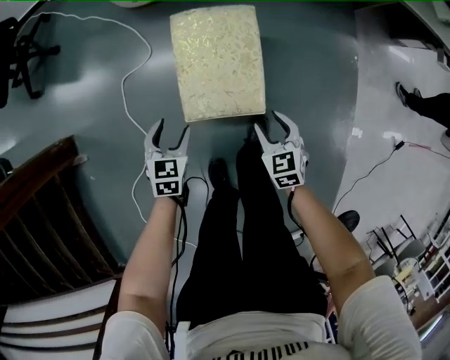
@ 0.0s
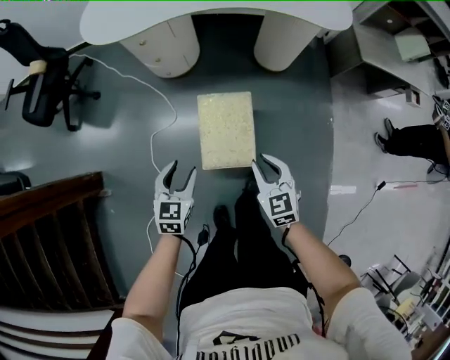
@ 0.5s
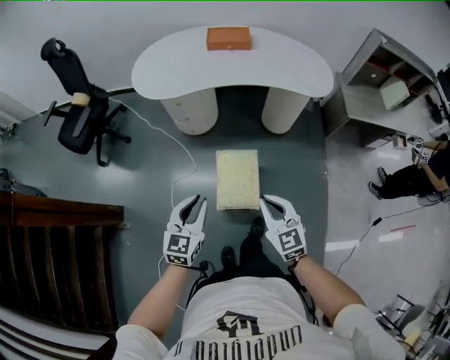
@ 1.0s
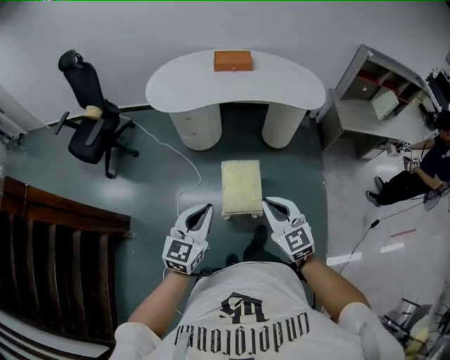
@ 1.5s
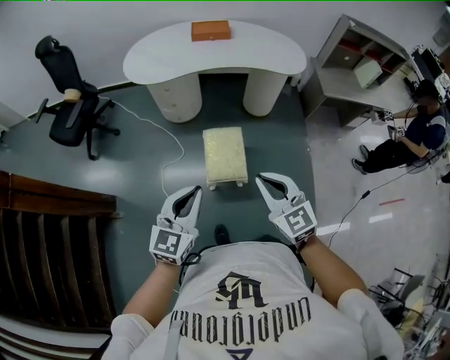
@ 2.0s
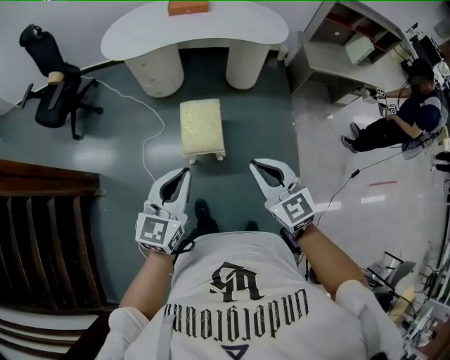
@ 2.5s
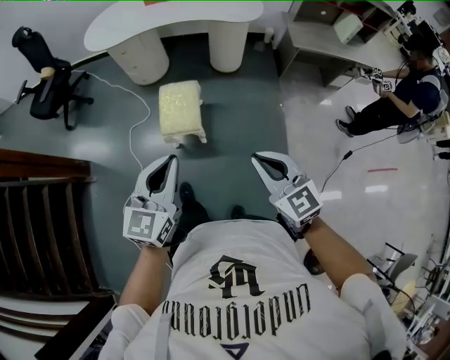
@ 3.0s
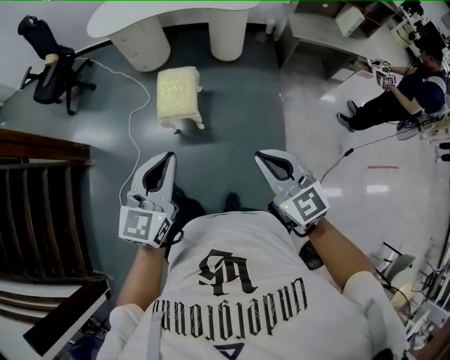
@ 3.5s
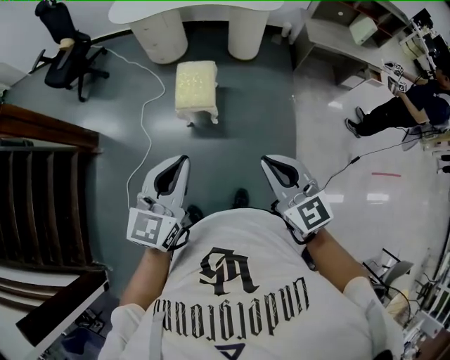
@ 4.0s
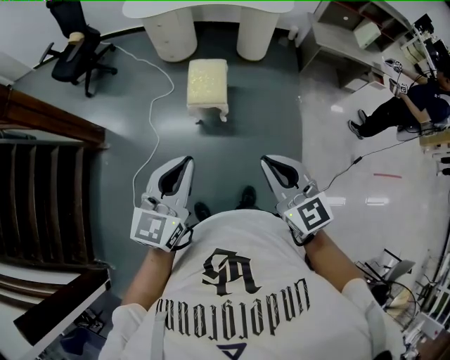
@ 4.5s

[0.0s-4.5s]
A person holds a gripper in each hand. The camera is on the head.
0.0s to 2.0s: Both grippers travel together upward, about 70 cm. The left gripper points its fingers about 40 degrees further upward, and closes up, while the right gripper tilts its fingers approximately 30 degrees upward, and closes up.
2.0s to 4.5s: Both grippers move backward, roughly 35 cm.

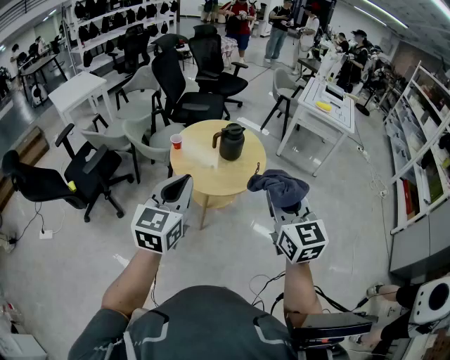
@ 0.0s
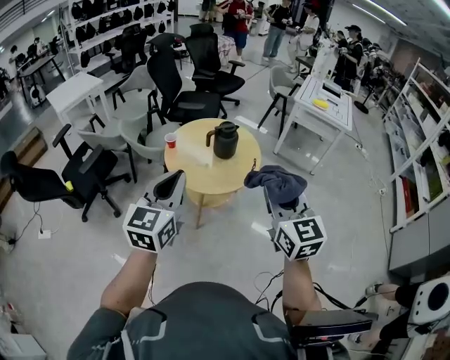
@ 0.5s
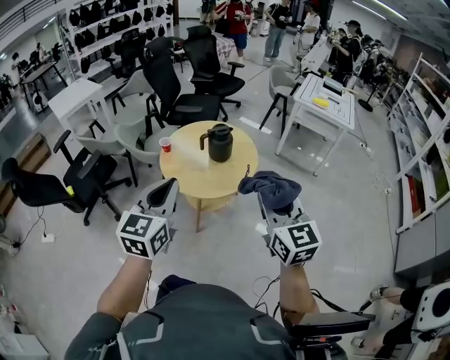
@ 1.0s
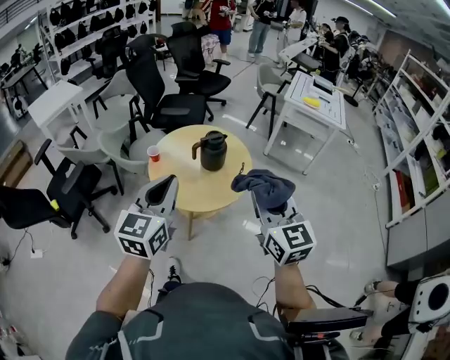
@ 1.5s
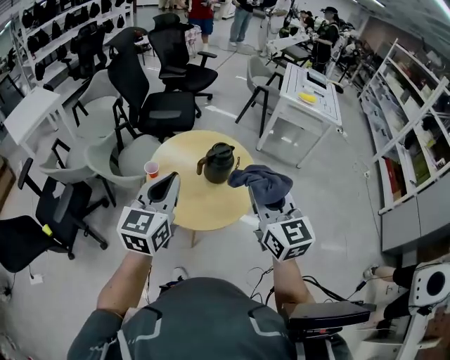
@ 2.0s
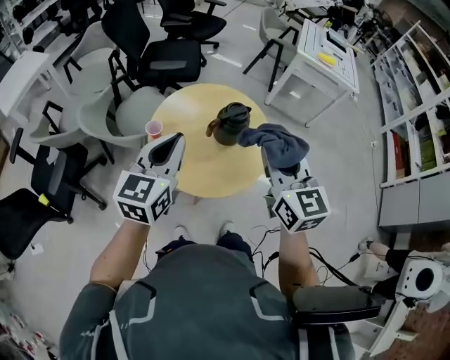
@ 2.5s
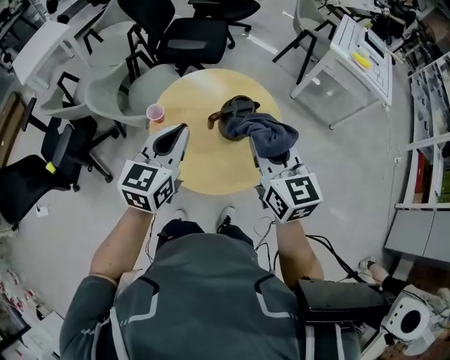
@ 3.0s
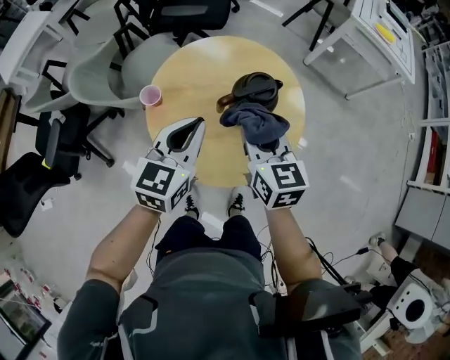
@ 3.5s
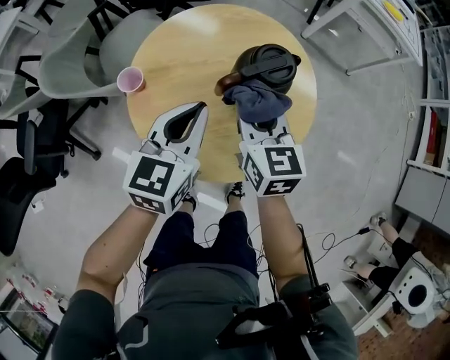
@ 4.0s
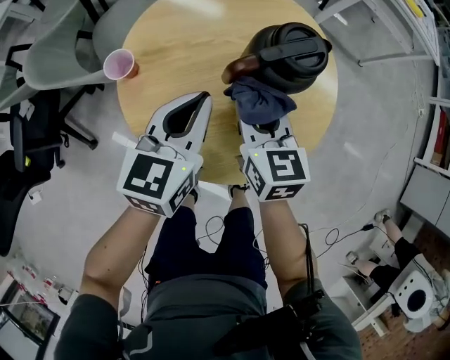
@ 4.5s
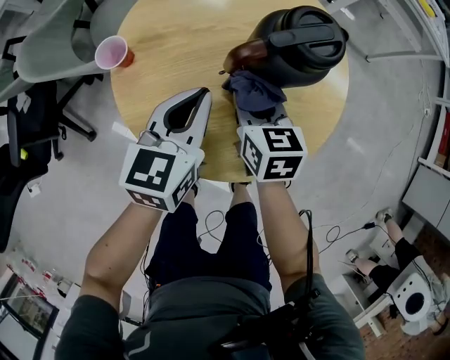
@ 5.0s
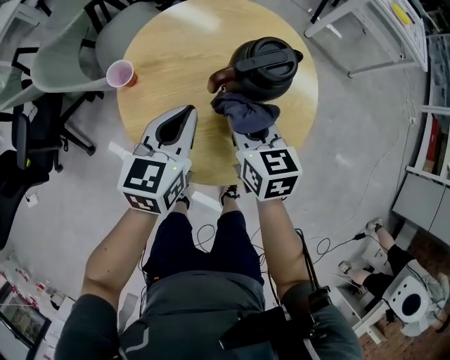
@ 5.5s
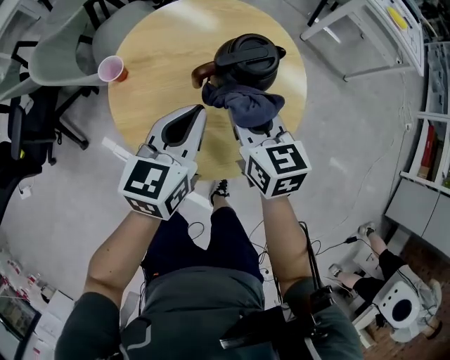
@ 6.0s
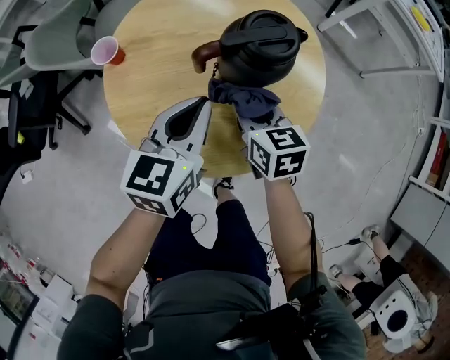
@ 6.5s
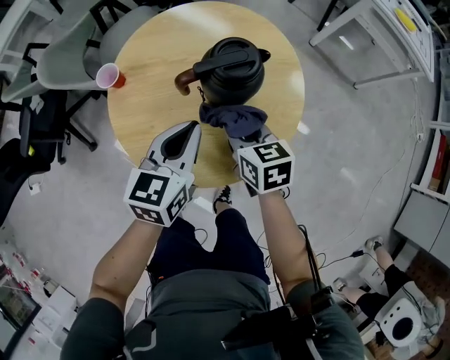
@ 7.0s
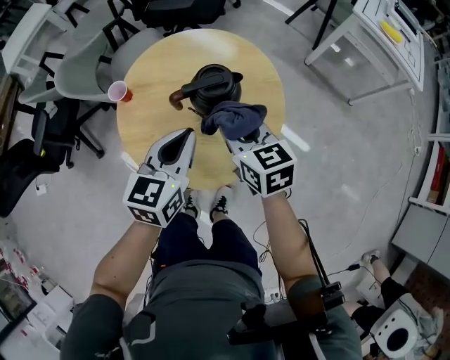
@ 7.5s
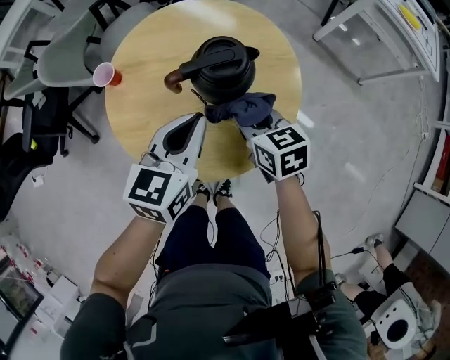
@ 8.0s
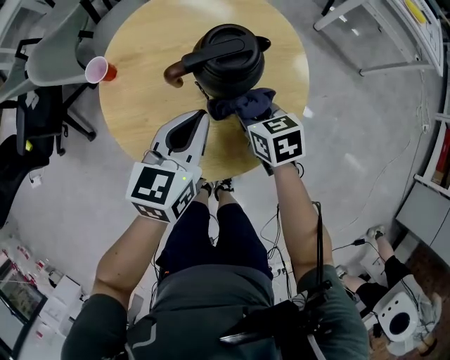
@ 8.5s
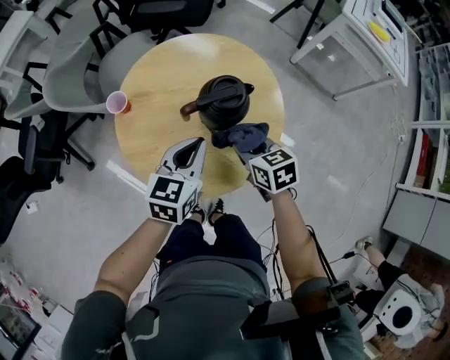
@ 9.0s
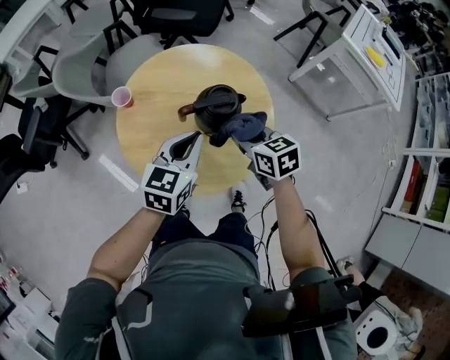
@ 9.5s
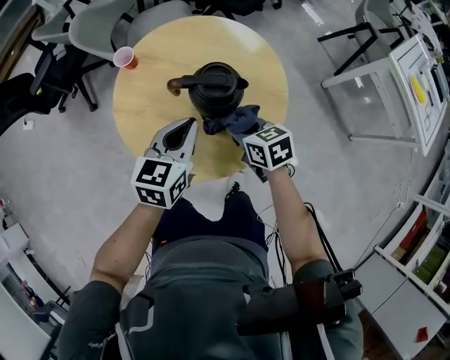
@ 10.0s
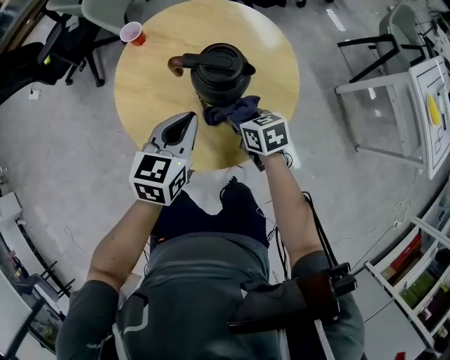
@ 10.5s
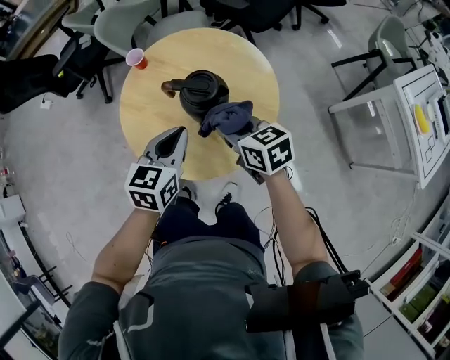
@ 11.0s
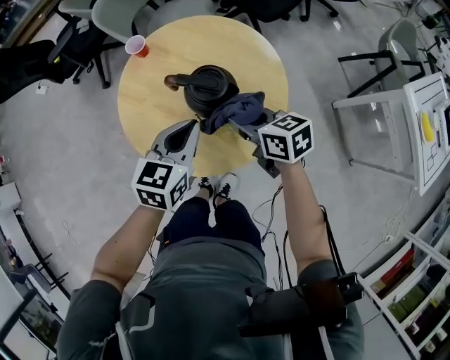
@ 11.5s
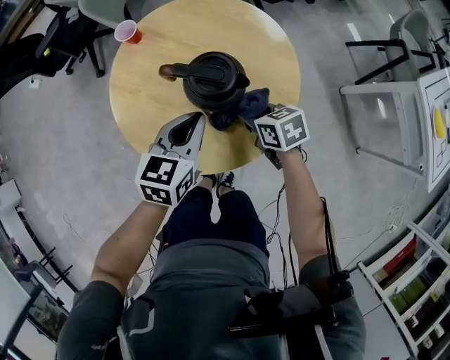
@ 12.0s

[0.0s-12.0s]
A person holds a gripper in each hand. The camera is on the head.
0.0s to 2.0s: The grippers both shift forward by roughly 25 cm.
2.0s to 4.0s: Both grippers travel together downward and forward, roughly 35 cm. The right gripper rotates about 20 degrees.
4.0s to 6.0s: The right gripper travels downward and back again, some 15 cm each way; the left gripper goes some 5 cm to the right, and moves about 10 cm downward and comes back.
6.0s to 8.0s: The right gripper goes up and down, about 15 cm each way, reversing 2 times. Meanwhile the left gripper goes up and down, about 10 cm each way, reversing 2 times.
8.0s to 10.0s: The right gripper swings up and down, about 15 cm each way, with 2 reversals, and rotates some 30 degrees; the left gripper reaches some 5 cm upward, then returns.
10.0s to 12.0s: The right gripper moves up and down over approximately 15 cm, changing direction 2 times.

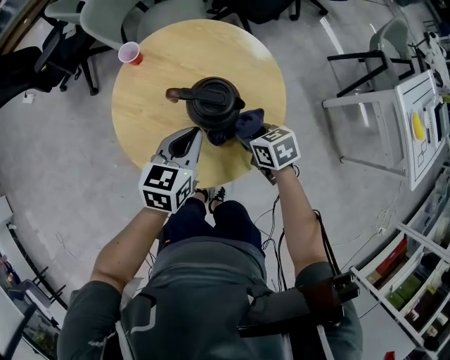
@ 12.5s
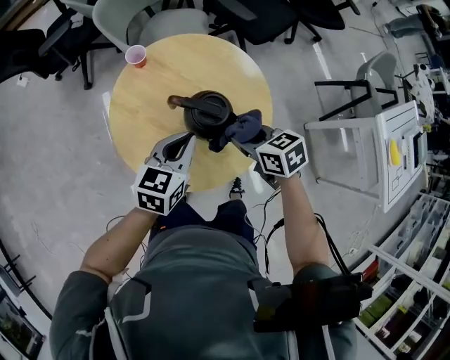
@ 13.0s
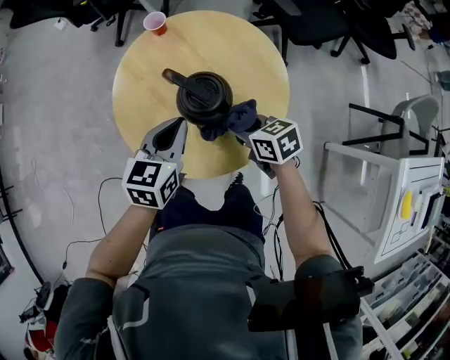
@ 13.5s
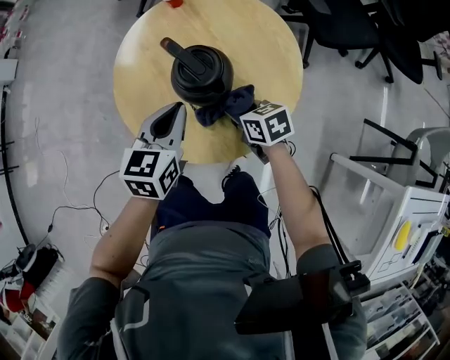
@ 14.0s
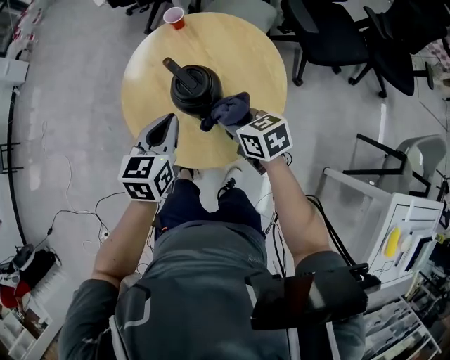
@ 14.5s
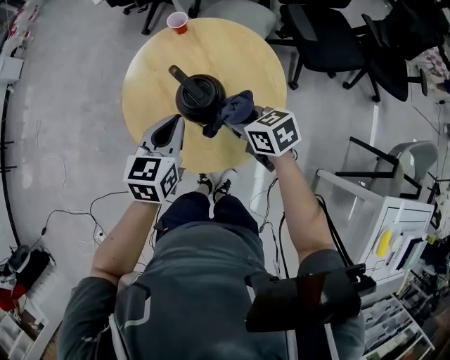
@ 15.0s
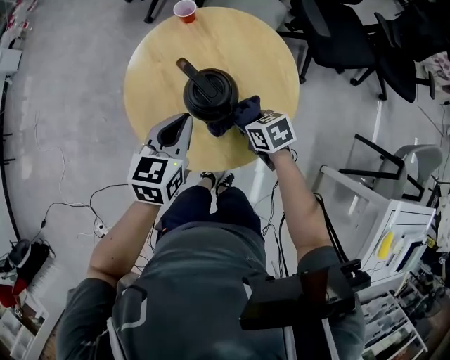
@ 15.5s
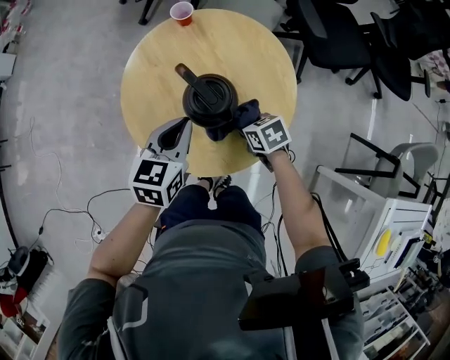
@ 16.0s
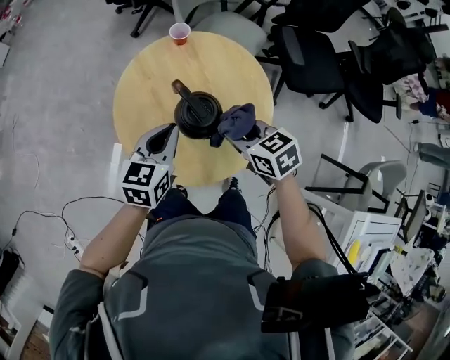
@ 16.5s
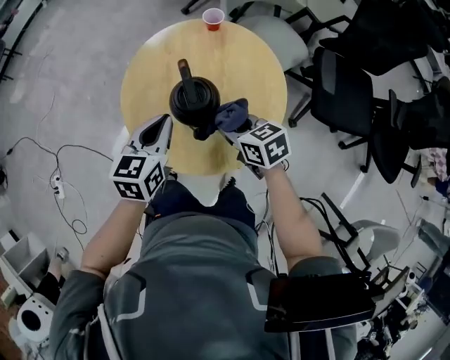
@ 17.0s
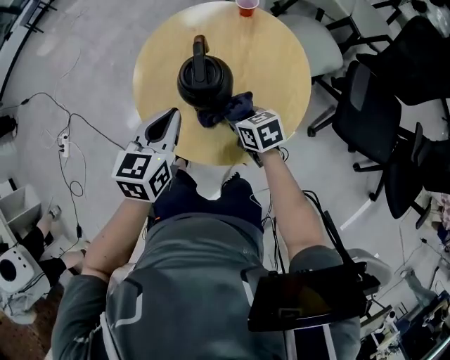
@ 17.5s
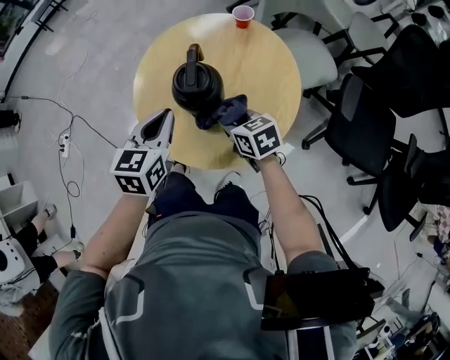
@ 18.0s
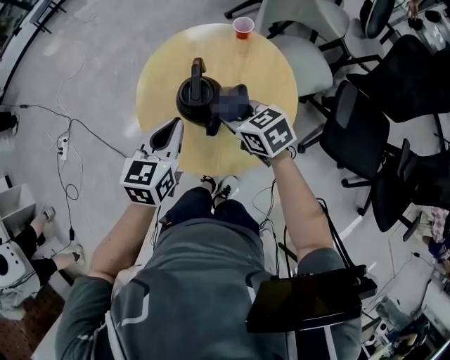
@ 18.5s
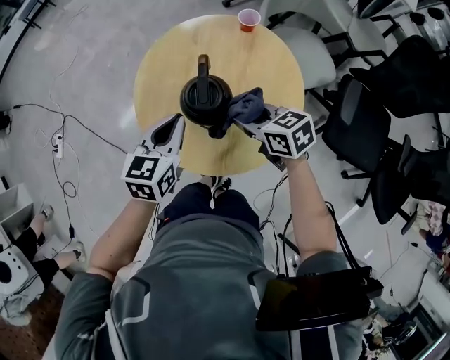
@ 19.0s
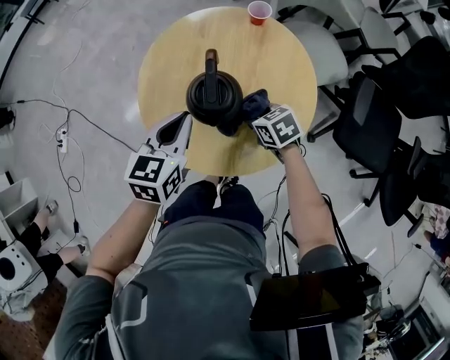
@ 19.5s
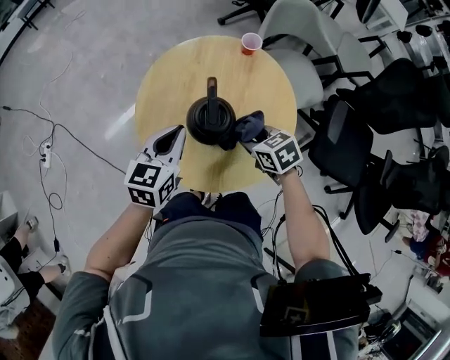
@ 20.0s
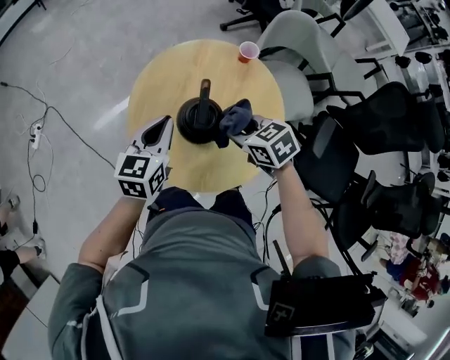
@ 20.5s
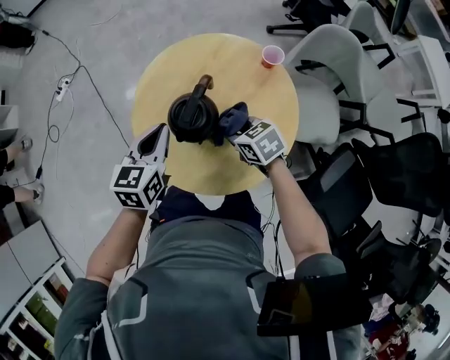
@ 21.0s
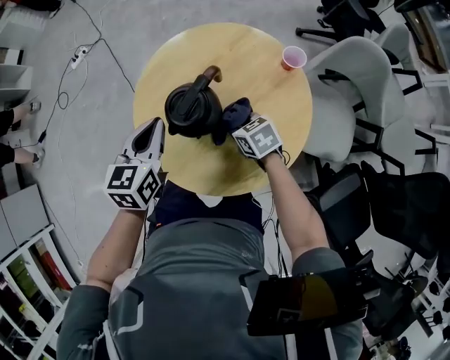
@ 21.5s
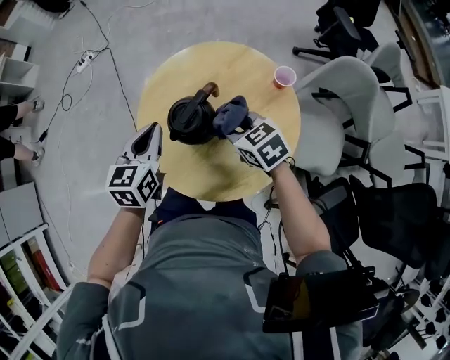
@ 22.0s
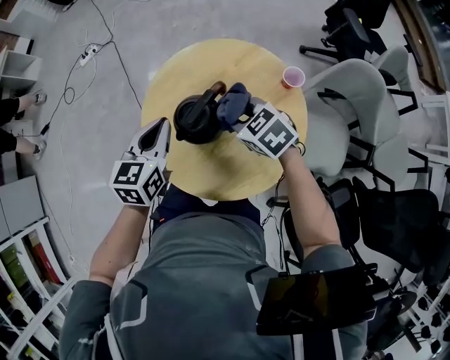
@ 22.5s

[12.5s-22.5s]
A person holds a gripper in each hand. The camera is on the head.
12.5s to 14.5s: The left gripper moves up and down over approximately 5 cm, changing direction 2 times, and rotates some 50 degrees, while the right gripper goes up and down, approximately 15 cm each way, reversing 2 times, and swivels some 40 degrees.
14.5s to 16.5s: The right gripper moves upward, some 5 cm.
16.5s to 18.5s: The left gripper ends up approximately 5 cm from where it was, and rotates approximately 40 degrees. Meanwhile the right gripper travels downward and back again, approximately 15 cm each way, and swivels about 40 degrees.
18.5s to 20.5s: The right gripper travels downward and back again, approximately 15 cm each way, while the left gripper is displaced forward by approximately 5 cm.
20.5s to 22.5s: The right gripper goes downward and returns, approximately 15 cm each way, and rotates some 40 degrees; the left gripper swivels some 40 degrees.
